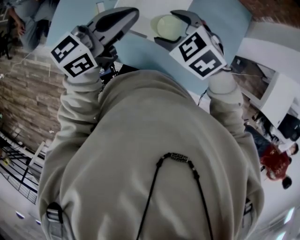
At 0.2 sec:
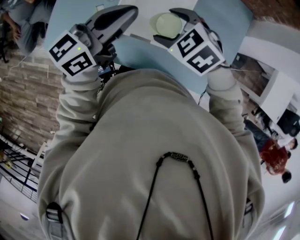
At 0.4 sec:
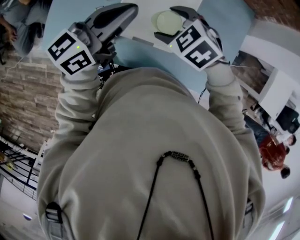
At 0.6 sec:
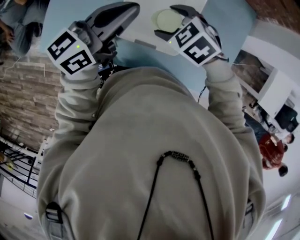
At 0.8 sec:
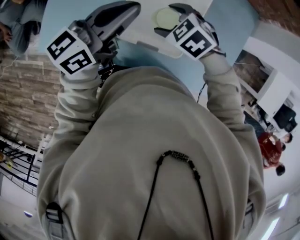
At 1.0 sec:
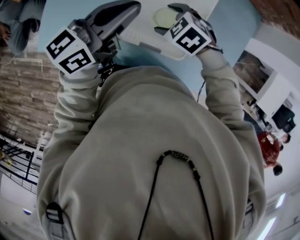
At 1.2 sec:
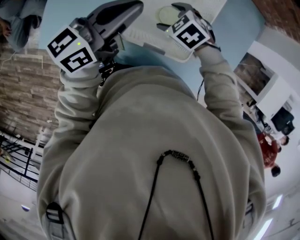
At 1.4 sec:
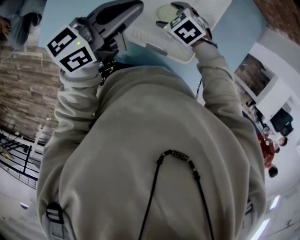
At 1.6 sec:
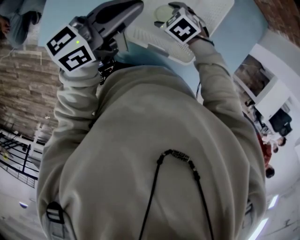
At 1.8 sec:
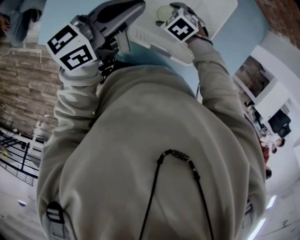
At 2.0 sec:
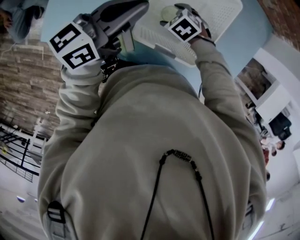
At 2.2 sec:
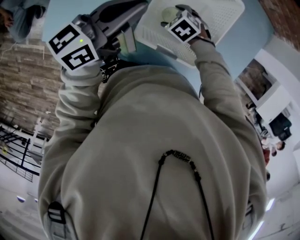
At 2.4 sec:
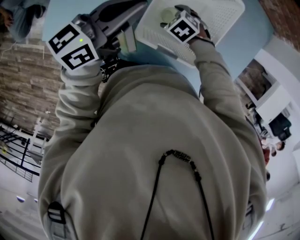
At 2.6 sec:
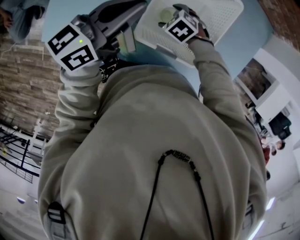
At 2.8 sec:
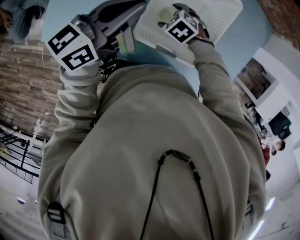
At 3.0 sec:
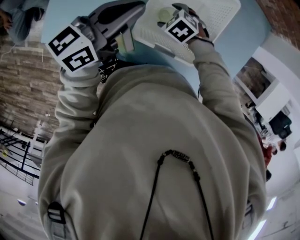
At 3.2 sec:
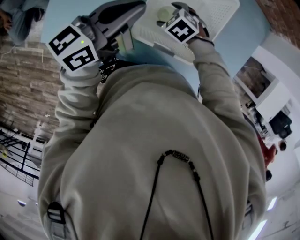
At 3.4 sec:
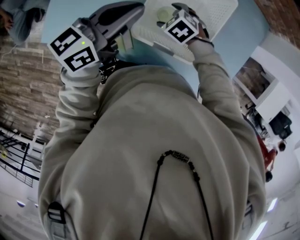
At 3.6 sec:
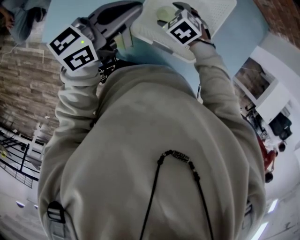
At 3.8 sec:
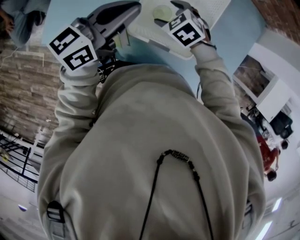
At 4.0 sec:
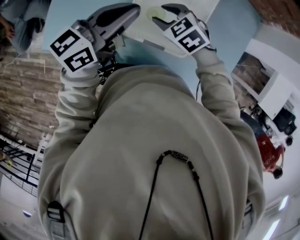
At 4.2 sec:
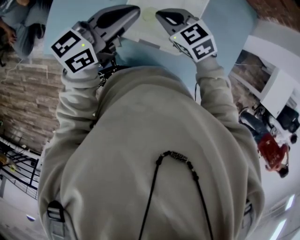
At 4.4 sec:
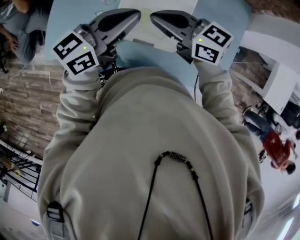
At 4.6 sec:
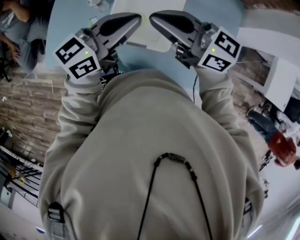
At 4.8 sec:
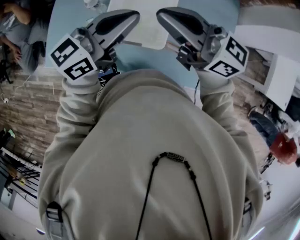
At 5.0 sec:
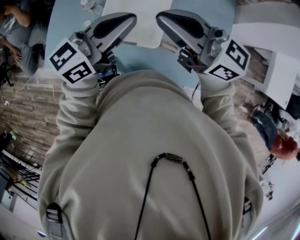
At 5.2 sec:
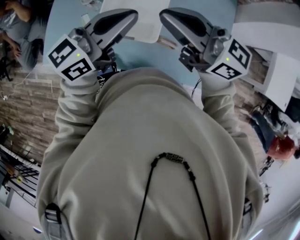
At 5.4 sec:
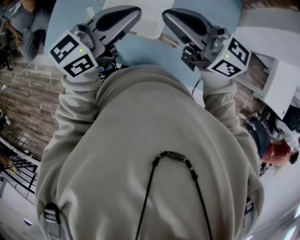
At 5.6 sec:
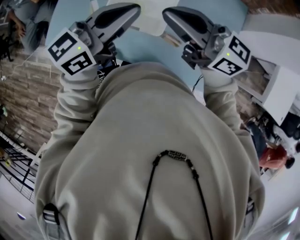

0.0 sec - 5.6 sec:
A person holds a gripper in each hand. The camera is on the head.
0.0 sec - 1.4 sec: The left gripper shifts some 15 cm forward, downward and to the left, while the right gripper shifts roughly 25 cm downward and forward.
2.8 sec - 4.2 sec: The right gripper travels upward by roughly 20 cm, angles its fingers upward, by some 30 degrees, and closes up; the left gripper travels backward by about 5 cm.
4.2 sec - 5.6 sec: The right gripper moves upward and backward, about 25 cm, and tilts its fingers roughly 50 degrees upward. Meanwhile the left gripper travels upward, backward and to the right by roughly 10 cm.

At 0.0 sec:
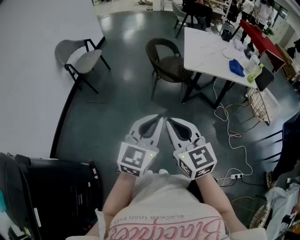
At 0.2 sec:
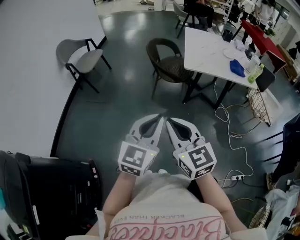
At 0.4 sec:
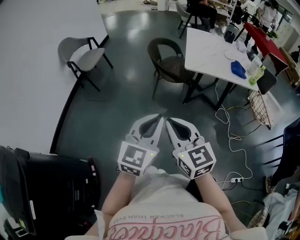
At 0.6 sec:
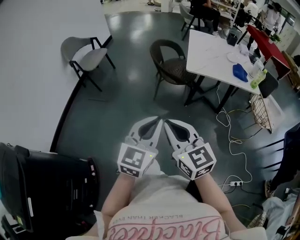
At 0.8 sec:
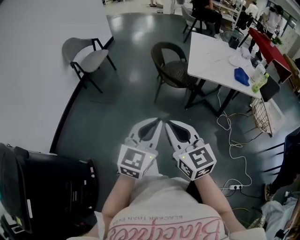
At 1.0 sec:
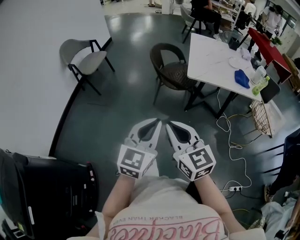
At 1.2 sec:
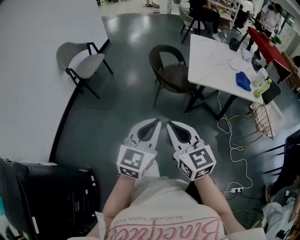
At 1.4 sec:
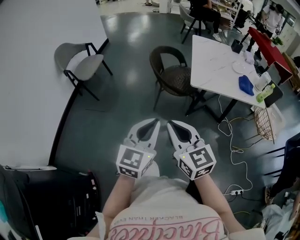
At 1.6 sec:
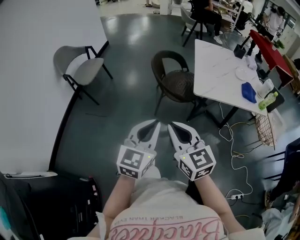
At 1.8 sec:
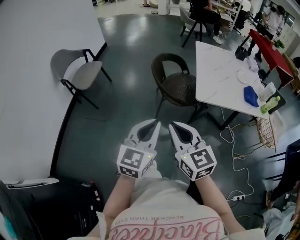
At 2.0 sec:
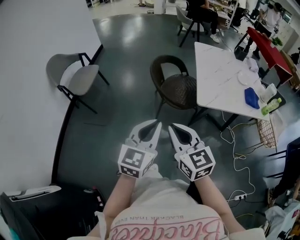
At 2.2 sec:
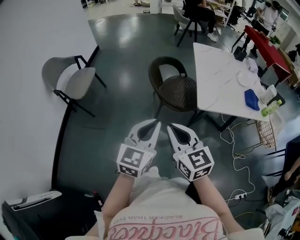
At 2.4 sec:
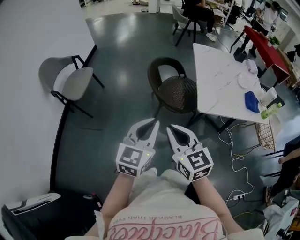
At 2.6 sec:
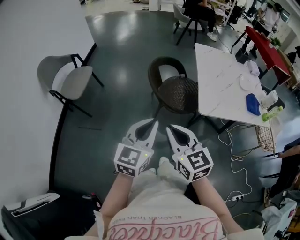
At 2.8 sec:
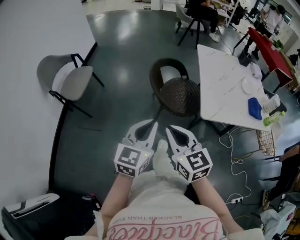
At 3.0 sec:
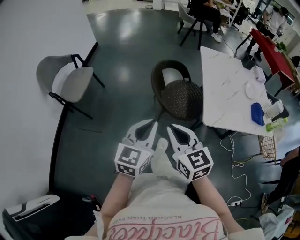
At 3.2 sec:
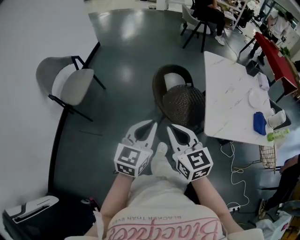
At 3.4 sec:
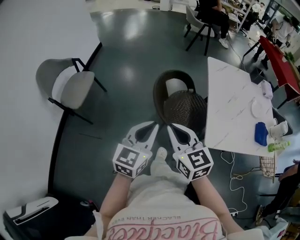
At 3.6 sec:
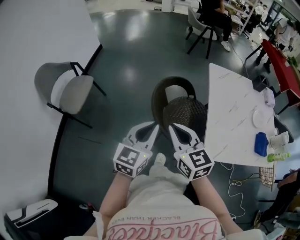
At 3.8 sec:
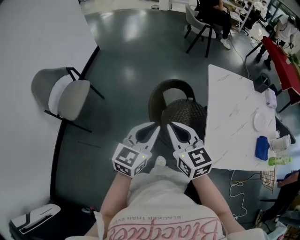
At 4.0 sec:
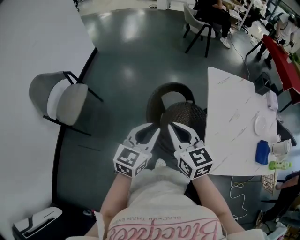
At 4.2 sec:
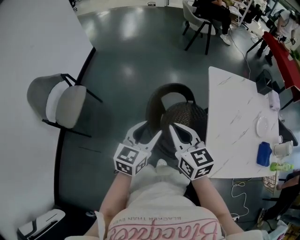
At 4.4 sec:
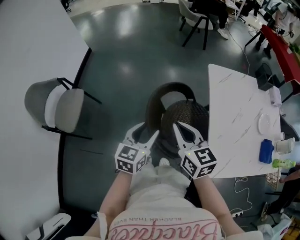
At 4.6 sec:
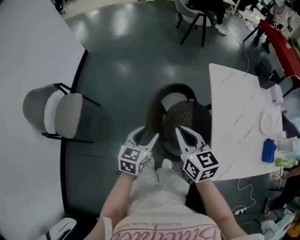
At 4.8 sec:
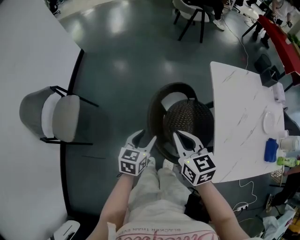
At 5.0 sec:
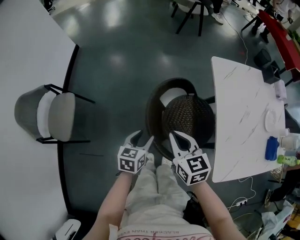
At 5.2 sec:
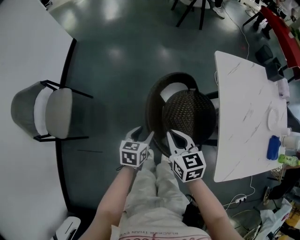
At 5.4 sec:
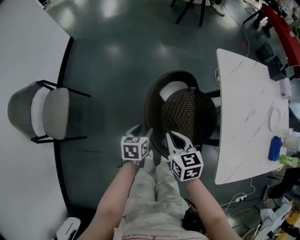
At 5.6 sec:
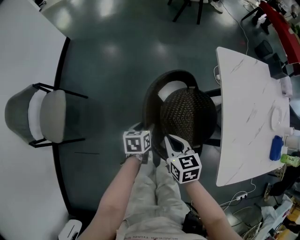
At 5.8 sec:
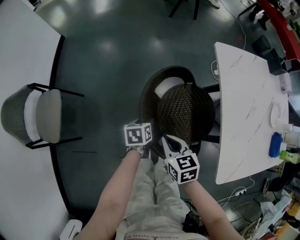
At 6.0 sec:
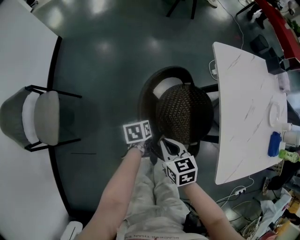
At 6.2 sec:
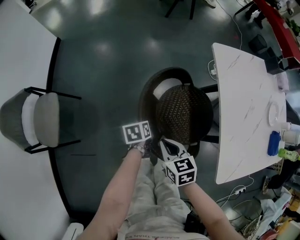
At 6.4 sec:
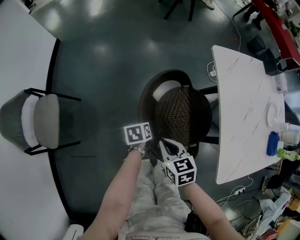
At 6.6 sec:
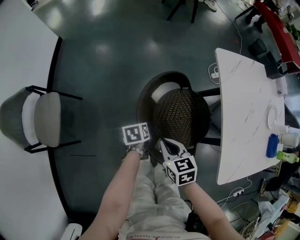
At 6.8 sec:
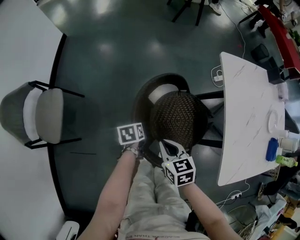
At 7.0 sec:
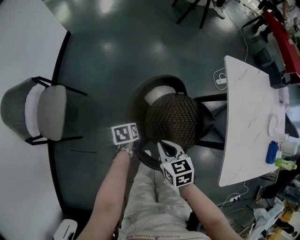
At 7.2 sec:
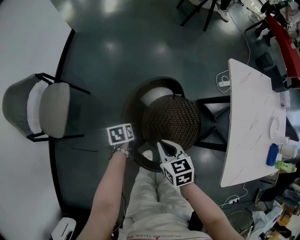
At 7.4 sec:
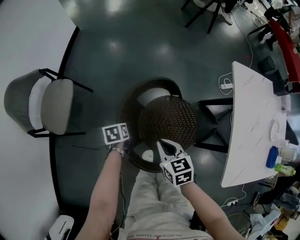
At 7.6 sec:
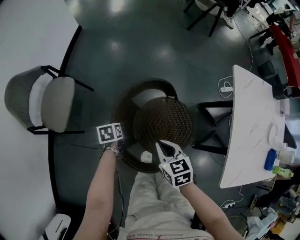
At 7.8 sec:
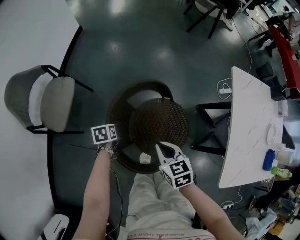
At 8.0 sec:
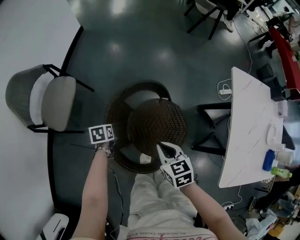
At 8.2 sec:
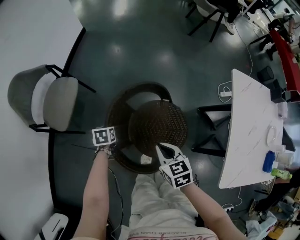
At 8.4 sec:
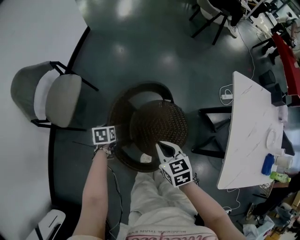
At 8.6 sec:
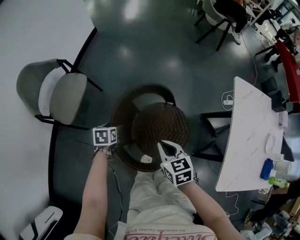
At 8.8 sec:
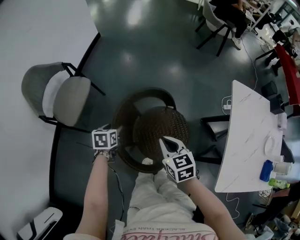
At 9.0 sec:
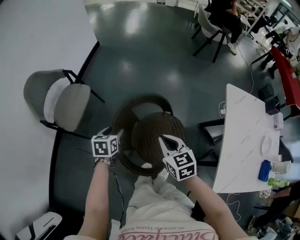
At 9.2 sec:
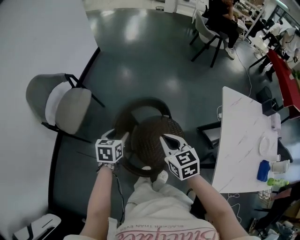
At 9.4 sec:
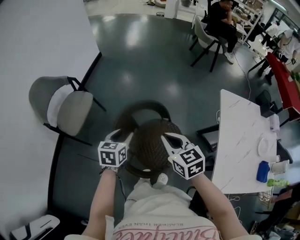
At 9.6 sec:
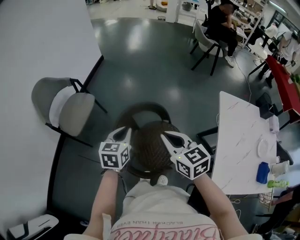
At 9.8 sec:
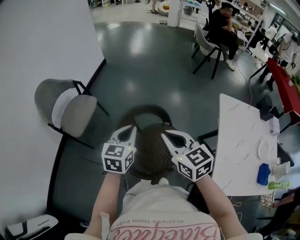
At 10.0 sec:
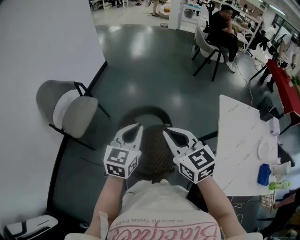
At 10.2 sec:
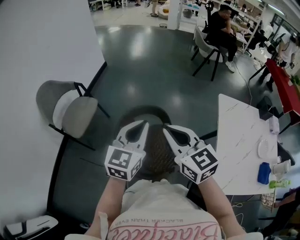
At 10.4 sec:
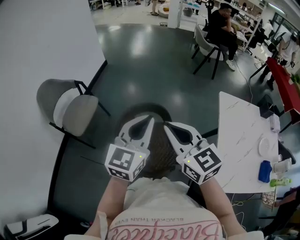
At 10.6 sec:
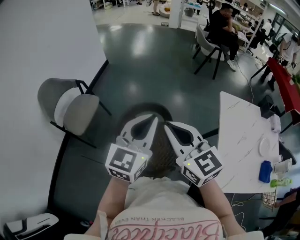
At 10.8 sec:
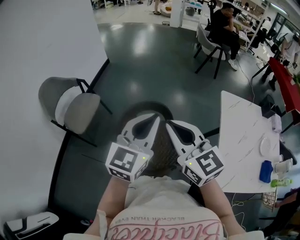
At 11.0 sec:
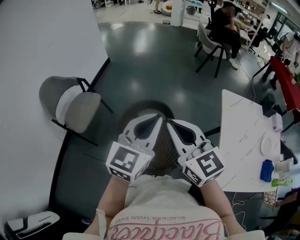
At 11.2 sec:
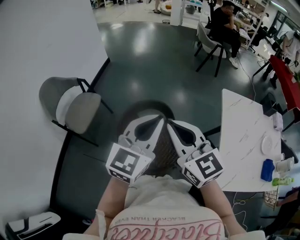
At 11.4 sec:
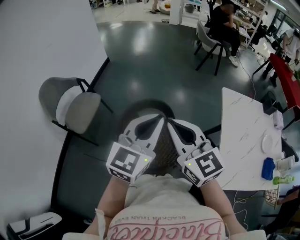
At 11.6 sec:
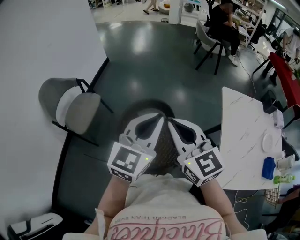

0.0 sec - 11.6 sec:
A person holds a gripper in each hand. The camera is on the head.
0.0 sec - 1.4 sec: Both grippers travel together forward, about 15 cm.
1.4 sec - 2.8 sec: Both grippers travel together forward, approximately 30 cm.
2.8 sec - 4.4 sec: The grippers both shift forward by about 40 cm. The left gripper opens.
4.4 sec - 5.8 sec: The left gripper travels downward and forward by some 30 cm, and angles its fingers downward, by approximately 30 degrees; the right gripper goes approximately 25 cm downward, and rotates approximately 20 degrees.
5.8 sec - 7.2 sec: The right gripper is displaced to the left by roughly 10 cm. The left gripper is displaced to the left by approximately 20 cm, and closes.
7.2 sec - 8.8 sec: The right gripper goes about 10 cm upward. Meanwhile the left gripper goes some 15 cm to the left and upward, and opens up.
8.8 sec - 10.2 sec: The left gripper travels upward and to the right by some 35 cm, tilts its fingers some 50 degrees upward, and closes. The right gripper heads upward, covering some 25 cm, and turns by about 30 degrees.
10.2 sec - 11.6 sec: The left gripper changes place by approximately 5 cm.

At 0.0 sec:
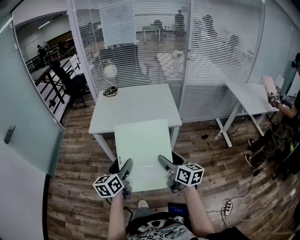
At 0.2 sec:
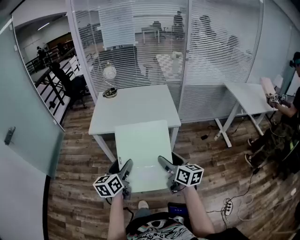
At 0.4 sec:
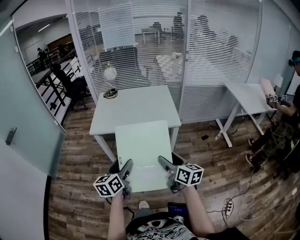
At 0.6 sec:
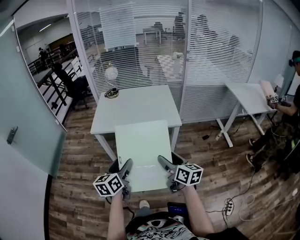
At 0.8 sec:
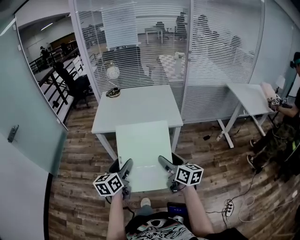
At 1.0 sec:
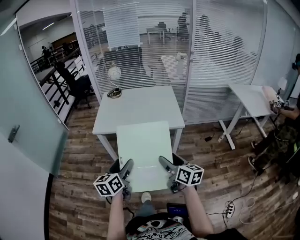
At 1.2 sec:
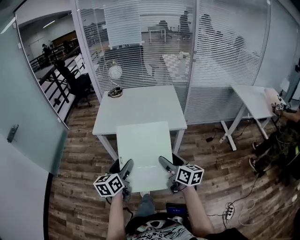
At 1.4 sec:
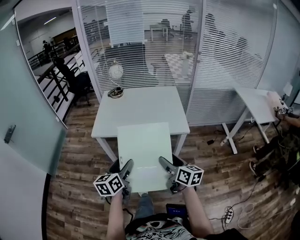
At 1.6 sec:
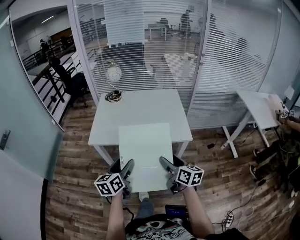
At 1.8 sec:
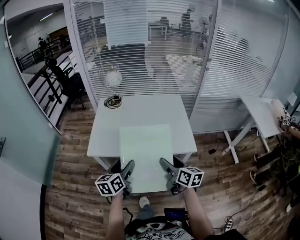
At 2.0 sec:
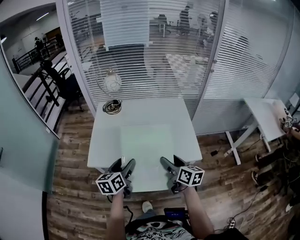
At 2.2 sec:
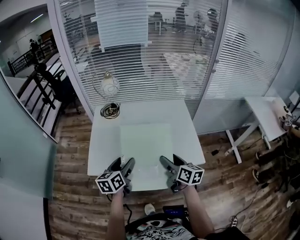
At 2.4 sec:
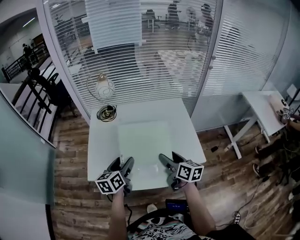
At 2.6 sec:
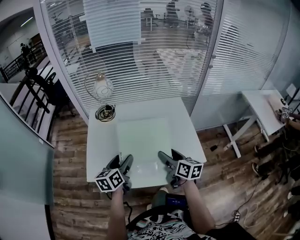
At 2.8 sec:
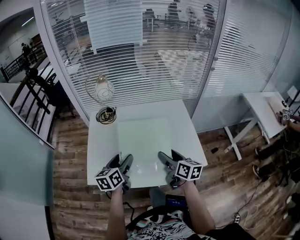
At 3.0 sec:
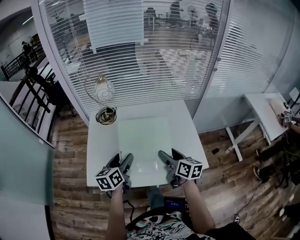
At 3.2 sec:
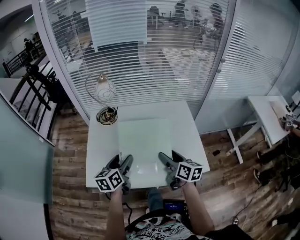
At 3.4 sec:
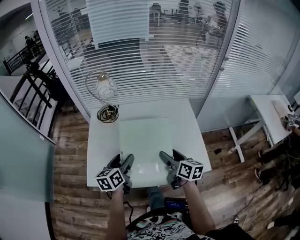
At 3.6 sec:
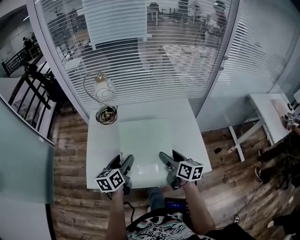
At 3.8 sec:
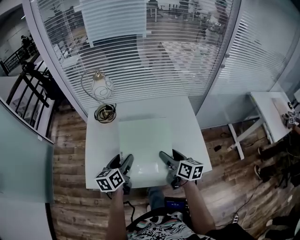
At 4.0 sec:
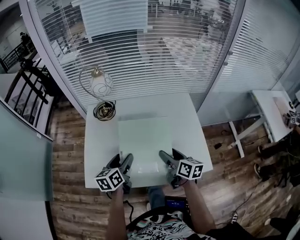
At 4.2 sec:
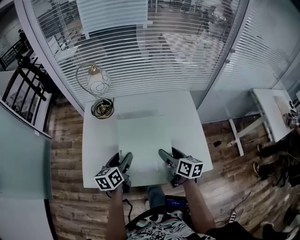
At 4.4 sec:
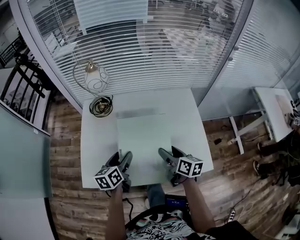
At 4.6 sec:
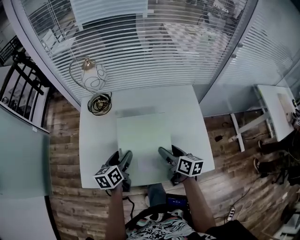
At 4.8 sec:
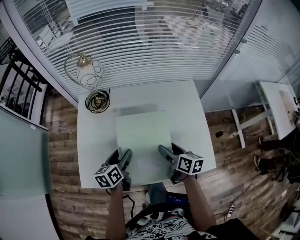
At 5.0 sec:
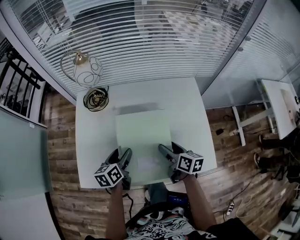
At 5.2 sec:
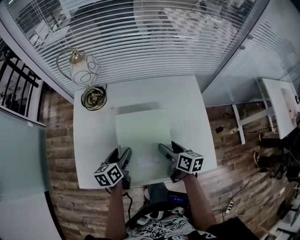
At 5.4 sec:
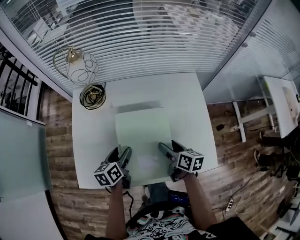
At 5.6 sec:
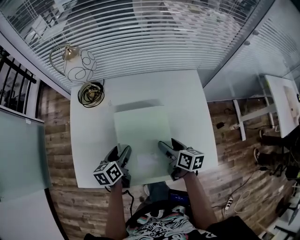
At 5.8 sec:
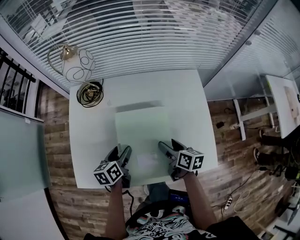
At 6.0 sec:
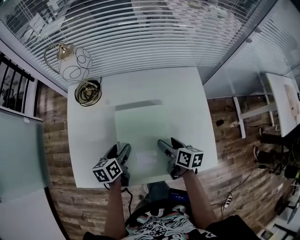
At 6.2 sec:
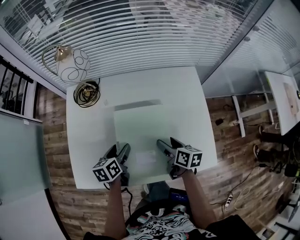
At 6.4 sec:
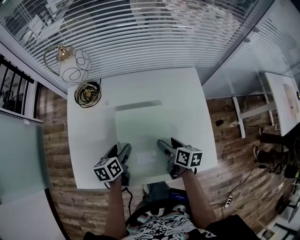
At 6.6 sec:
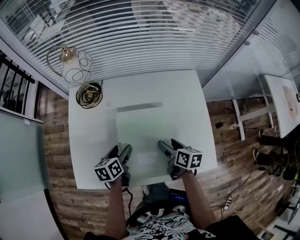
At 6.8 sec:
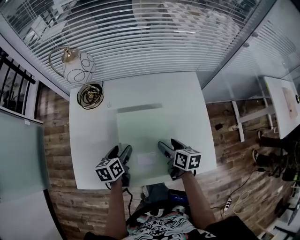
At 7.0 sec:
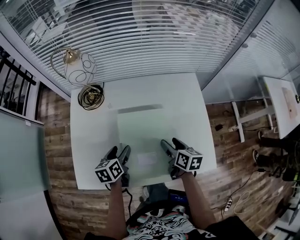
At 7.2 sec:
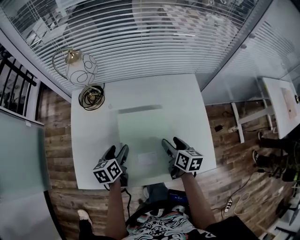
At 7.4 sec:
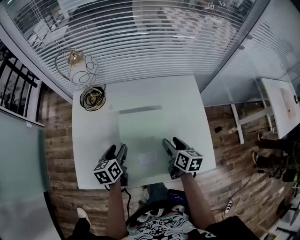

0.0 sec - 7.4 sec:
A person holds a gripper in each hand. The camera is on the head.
0.0 sec - 1.4 sec: The grippers both shift forward by roughly 5 cm.
1.4 sec - 3.0 sec: The two grippers go some 40 cm forward.
3.0 sec - 4.4 sec: The left gripper travels downward by approximately 5 cm. Meanwhile the right gripper shifts roughly 10 cm downward and forward.
4.4 sec - 6.0 sec: The two grippers go approximately 10 cm downward.
6.0 sec - 7.4 sec: The grippers move only a little.
